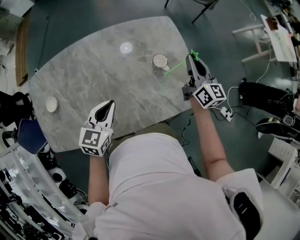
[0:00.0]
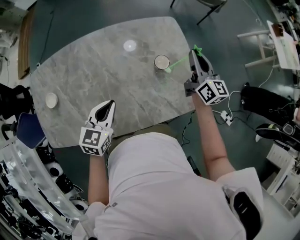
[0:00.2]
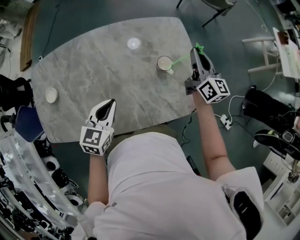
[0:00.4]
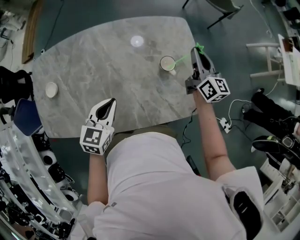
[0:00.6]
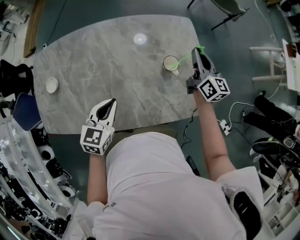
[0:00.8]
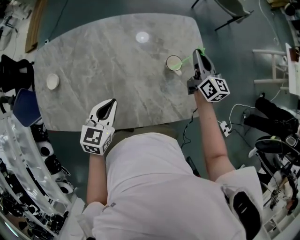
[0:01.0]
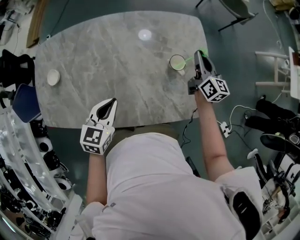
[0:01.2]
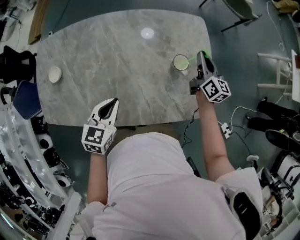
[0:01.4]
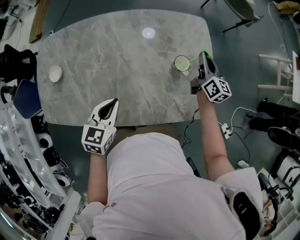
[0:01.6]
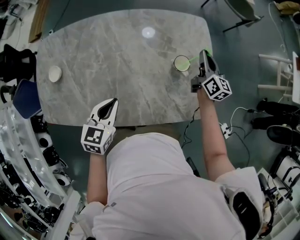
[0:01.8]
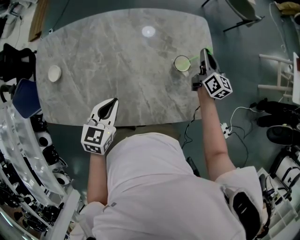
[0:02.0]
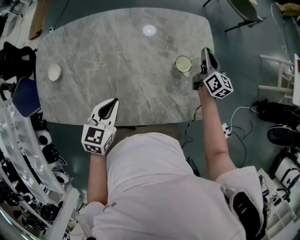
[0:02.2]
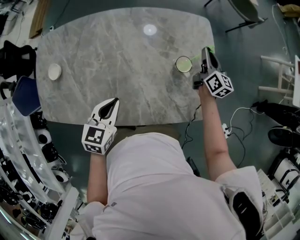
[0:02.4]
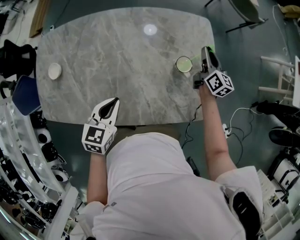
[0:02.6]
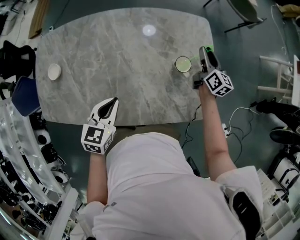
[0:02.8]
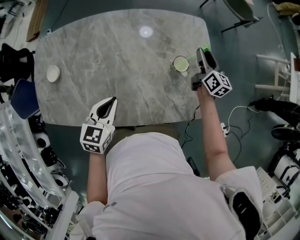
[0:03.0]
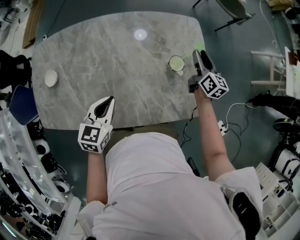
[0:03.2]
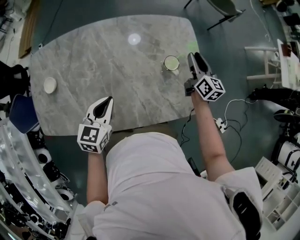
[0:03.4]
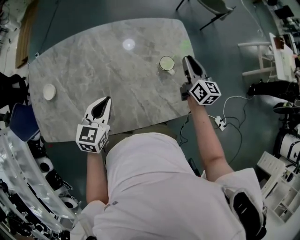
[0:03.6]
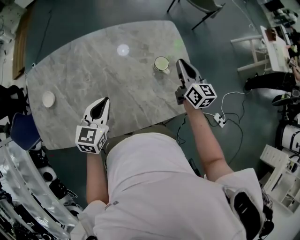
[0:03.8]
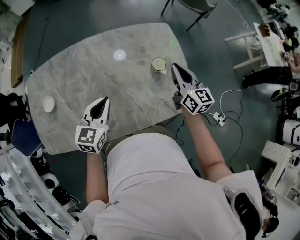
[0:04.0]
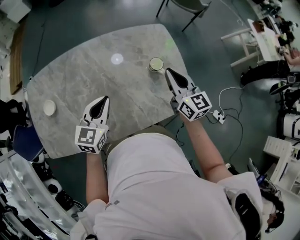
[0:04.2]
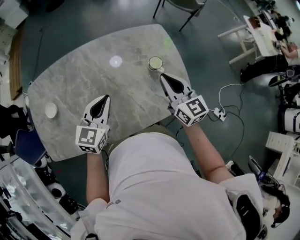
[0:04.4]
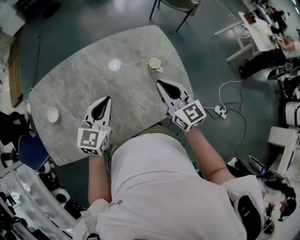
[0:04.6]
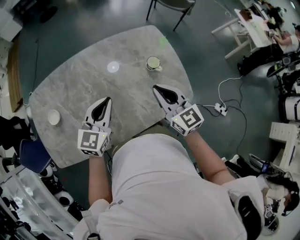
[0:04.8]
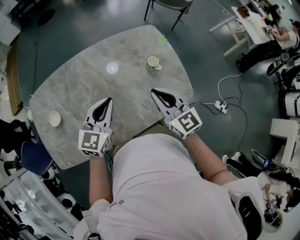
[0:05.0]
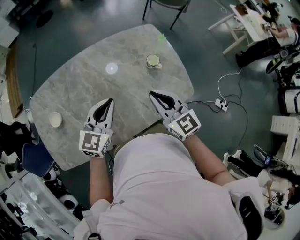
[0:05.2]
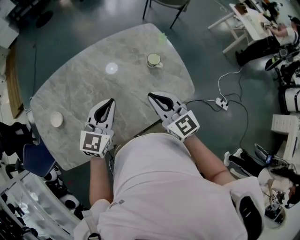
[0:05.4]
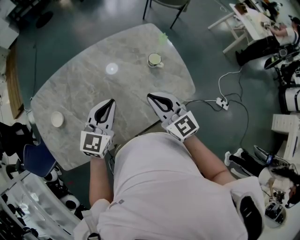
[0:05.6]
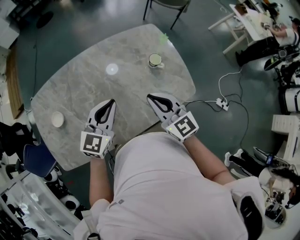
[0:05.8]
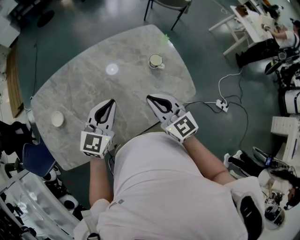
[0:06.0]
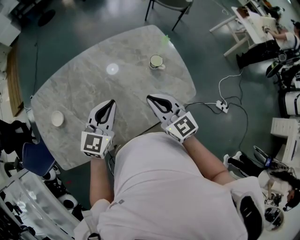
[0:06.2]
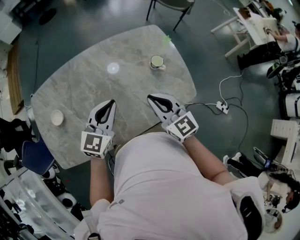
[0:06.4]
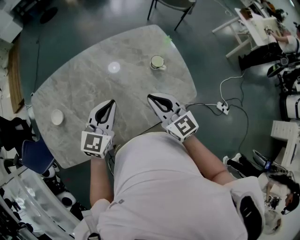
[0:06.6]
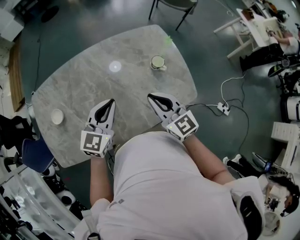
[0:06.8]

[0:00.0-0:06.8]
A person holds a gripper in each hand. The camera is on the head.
0:00.0 to 0:01.4: The left gripper moves approximately 5 cm. The right gripper heads downward and forward, covering approximately 15 cm.
0:01.4 to 0:02.8: The right gripper opens up.
0:02.8 to 0:04.0: The right gripper travels backward and upward by about 20 cm, and closes up. Meanwhile the left gripper shifts approximately 5 cm upward.
0:04.0 to 0:05.4: The left gripper heads upward, covering approximately 5 cm; the right gripper moves backward and to the left, about 20 cm.
0:05.4 to 0:06.8: There are only small adjustments of the grippers.

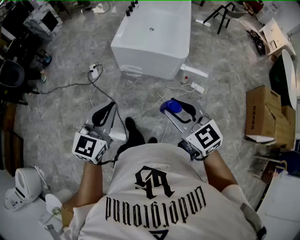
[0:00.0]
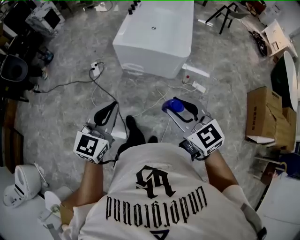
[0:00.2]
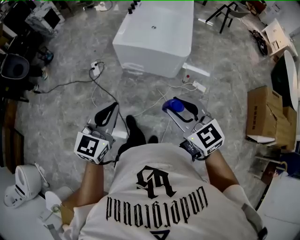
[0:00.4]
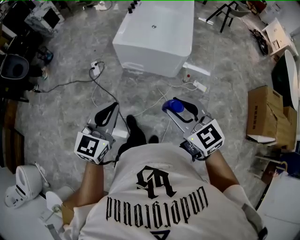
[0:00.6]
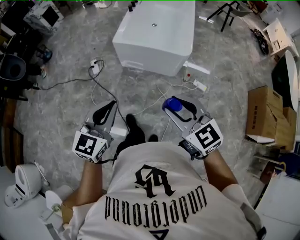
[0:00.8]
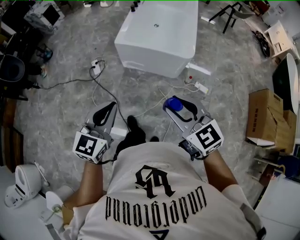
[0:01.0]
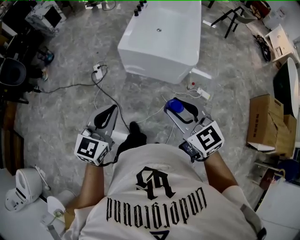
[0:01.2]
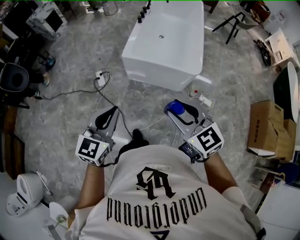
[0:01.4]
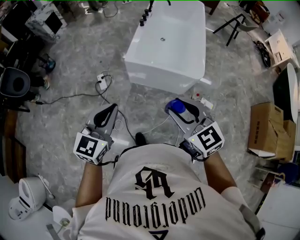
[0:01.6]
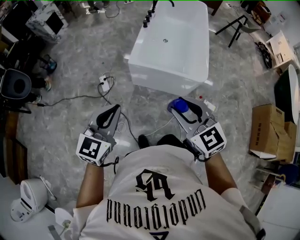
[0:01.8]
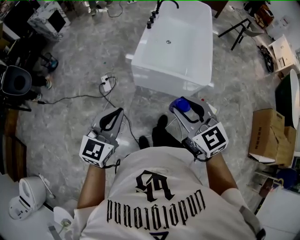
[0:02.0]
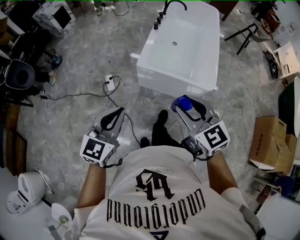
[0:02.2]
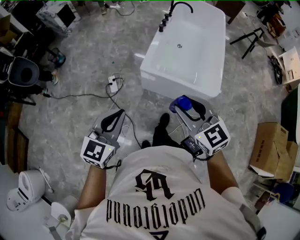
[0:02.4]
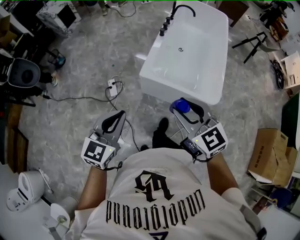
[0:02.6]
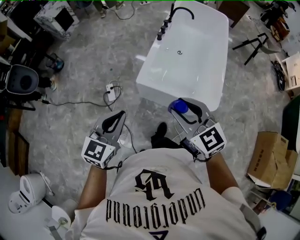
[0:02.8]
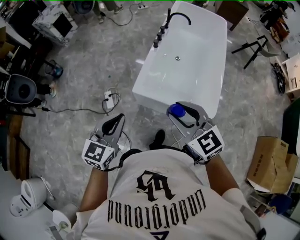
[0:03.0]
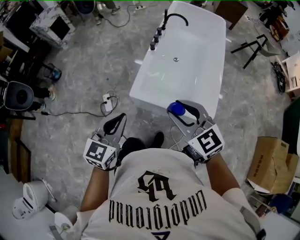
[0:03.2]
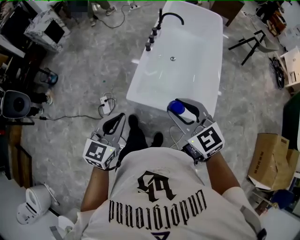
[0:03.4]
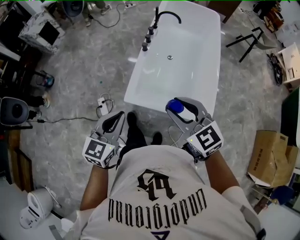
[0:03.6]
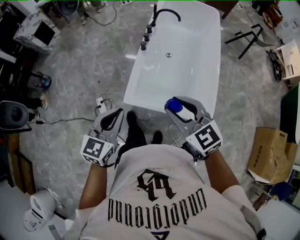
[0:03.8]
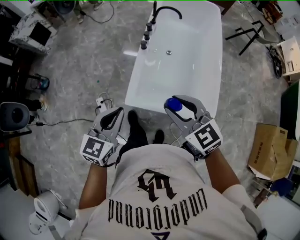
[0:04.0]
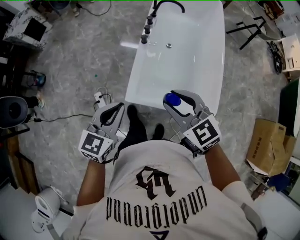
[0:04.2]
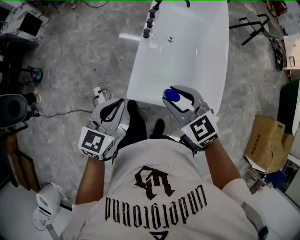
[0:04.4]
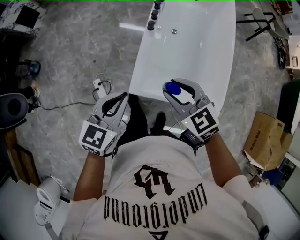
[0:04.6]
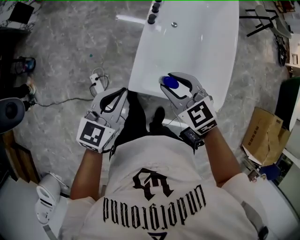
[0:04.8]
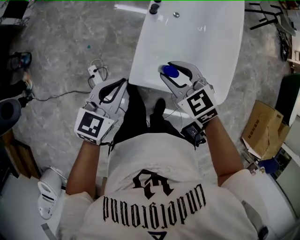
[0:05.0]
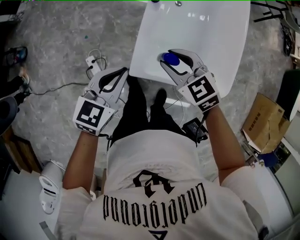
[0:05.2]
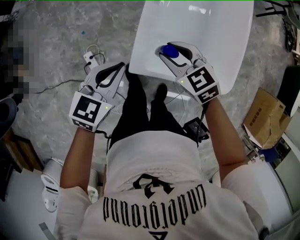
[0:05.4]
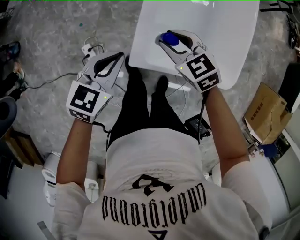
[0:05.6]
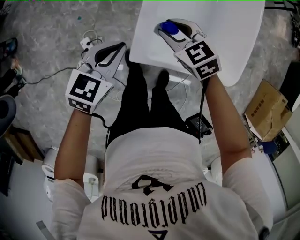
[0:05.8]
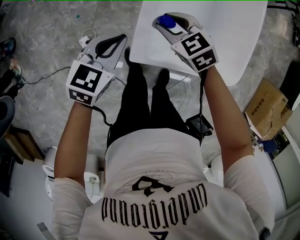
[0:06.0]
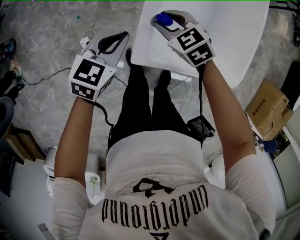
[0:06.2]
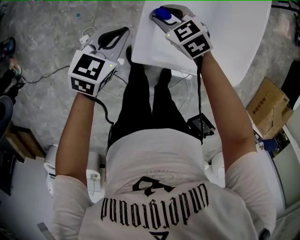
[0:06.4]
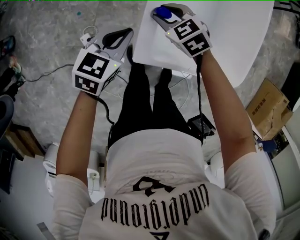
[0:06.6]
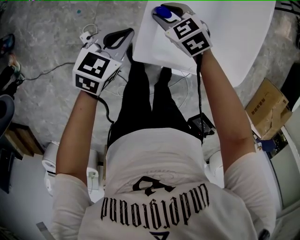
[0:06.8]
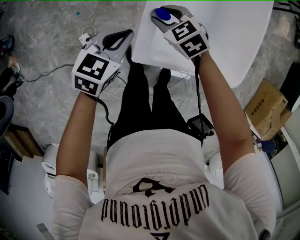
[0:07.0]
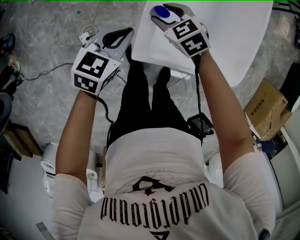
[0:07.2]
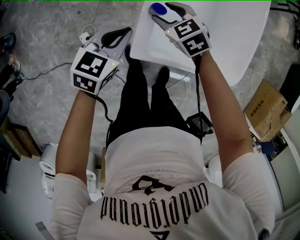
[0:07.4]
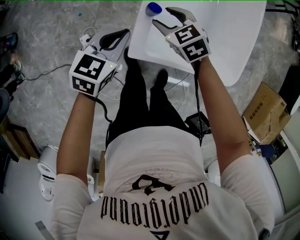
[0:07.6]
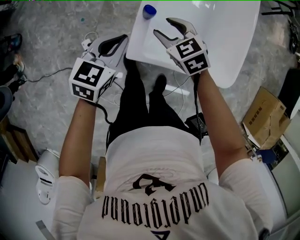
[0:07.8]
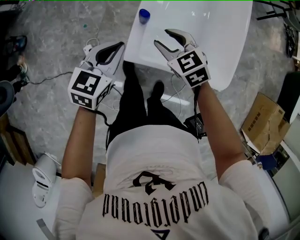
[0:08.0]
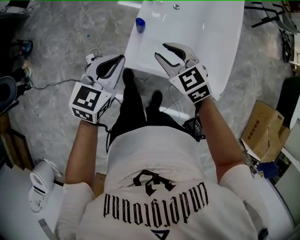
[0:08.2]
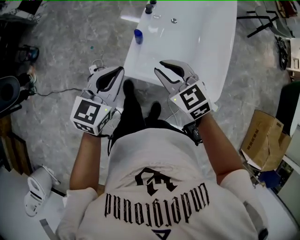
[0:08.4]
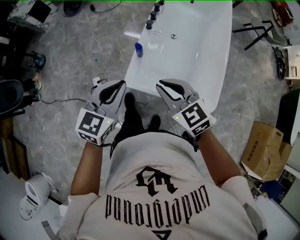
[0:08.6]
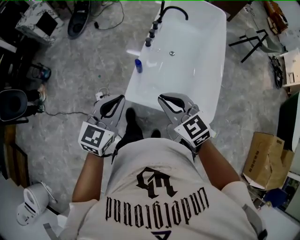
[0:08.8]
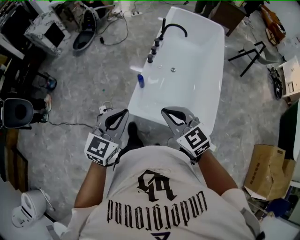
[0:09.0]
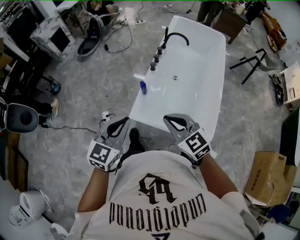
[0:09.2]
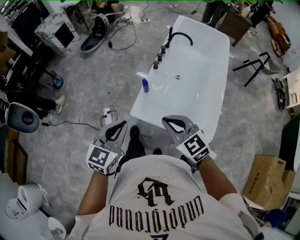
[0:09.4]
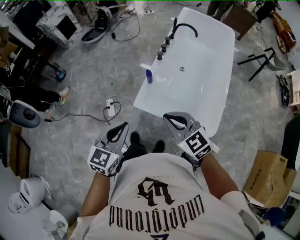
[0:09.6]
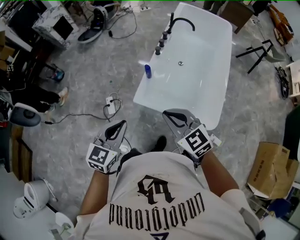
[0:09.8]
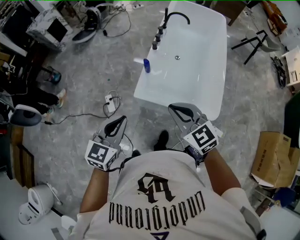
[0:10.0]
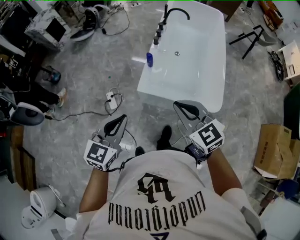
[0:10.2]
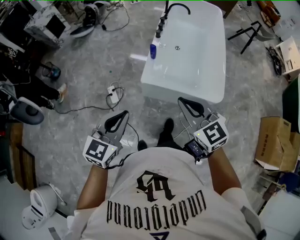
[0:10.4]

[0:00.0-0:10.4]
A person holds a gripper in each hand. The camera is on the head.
0:00.0 to 0:01.4: Both grippers move forward and to the left, about 15 cm.
0:01.4 to 0:03.0: Both grippers move forward, some 35 cm.
0:03.0 to 0:04.4: The right gripper is displaced forward and downward by some 25 cm. Meanwhile the left gripper travels forward by about 25 cm.
0:04.4 to 0:06.0: The grippers both shift downward and forward by some 30 cm.
0:06.0 to 0:07.4: The grippers stay close to where they were, moving slightly.
0:07.4 to 0:09.0: The two grippers go some 50 cm upward and backward. The right gripper turns by about 30 degrees, and closes up, while the left gripper rotates about 30 degrees.
0:09.0 to 0:10.4: Both grippers travel together backward and to the left, roughly 20 cm.

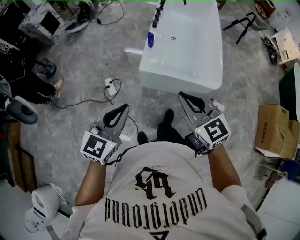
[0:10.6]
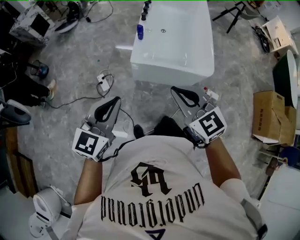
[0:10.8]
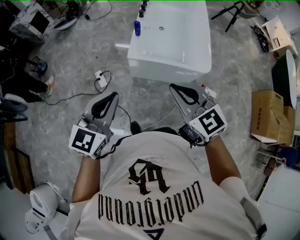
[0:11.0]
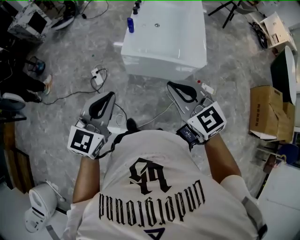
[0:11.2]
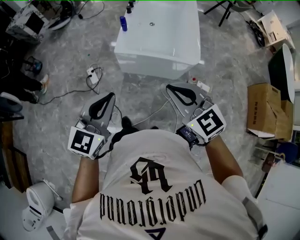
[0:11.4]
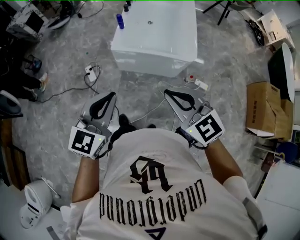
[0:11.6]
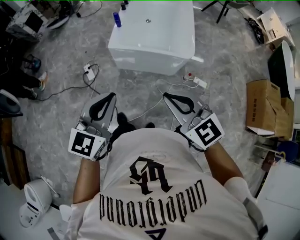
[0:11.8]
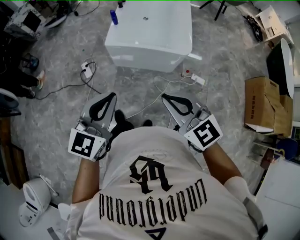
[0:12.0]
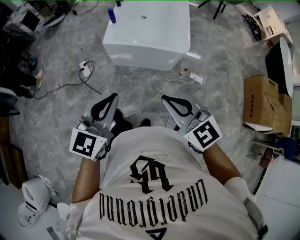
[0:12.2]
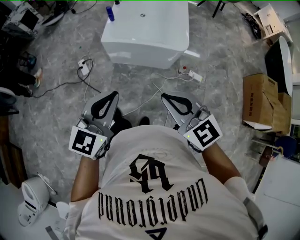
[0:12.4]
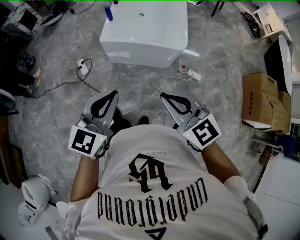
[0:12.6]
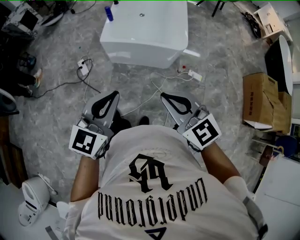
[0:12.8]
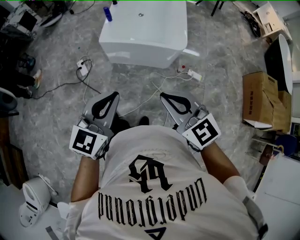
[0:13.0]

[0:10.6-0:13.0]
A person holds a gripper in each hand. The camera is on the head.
0:10.6 to 0:11.8: The grippers both shift backward and to the right by some 25 cm.
0:11.8 to 0:13.0: The left gripper ends up about 5 cm from where it was.

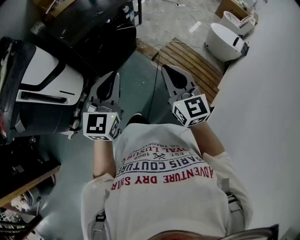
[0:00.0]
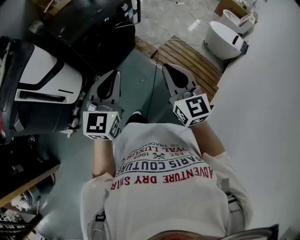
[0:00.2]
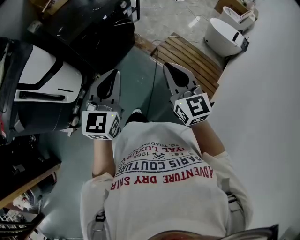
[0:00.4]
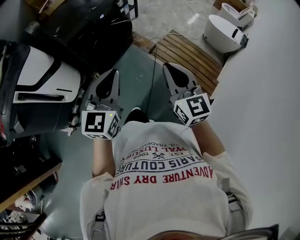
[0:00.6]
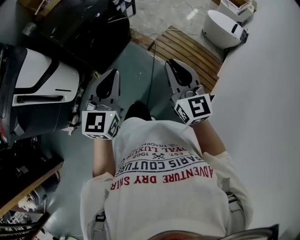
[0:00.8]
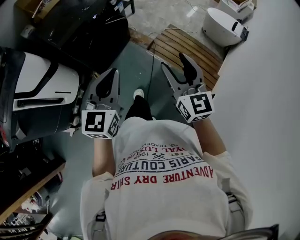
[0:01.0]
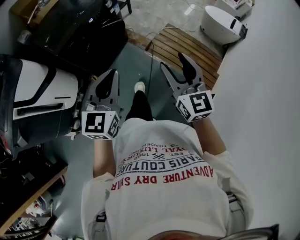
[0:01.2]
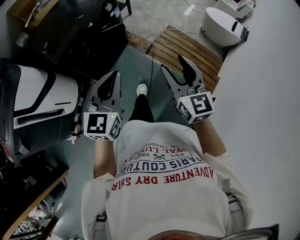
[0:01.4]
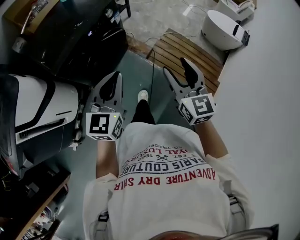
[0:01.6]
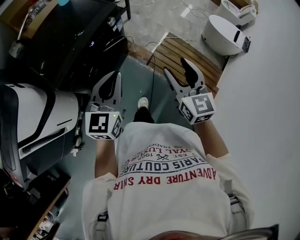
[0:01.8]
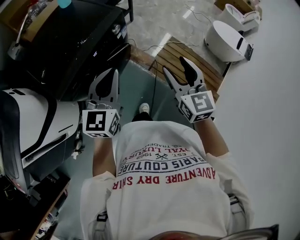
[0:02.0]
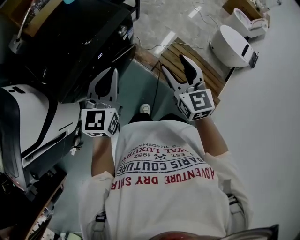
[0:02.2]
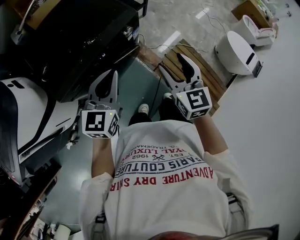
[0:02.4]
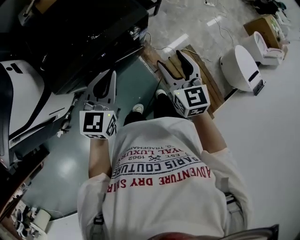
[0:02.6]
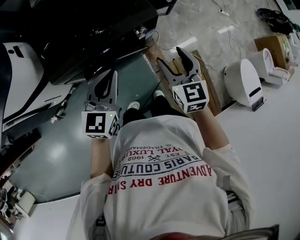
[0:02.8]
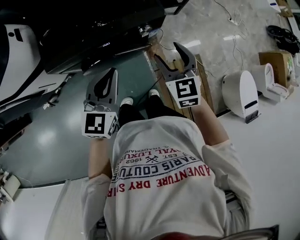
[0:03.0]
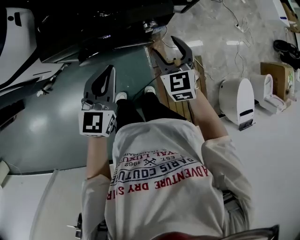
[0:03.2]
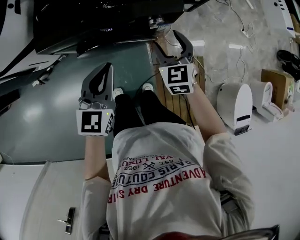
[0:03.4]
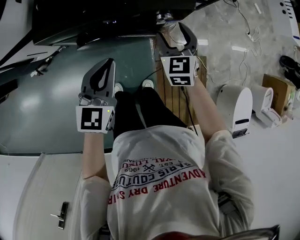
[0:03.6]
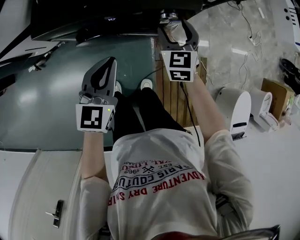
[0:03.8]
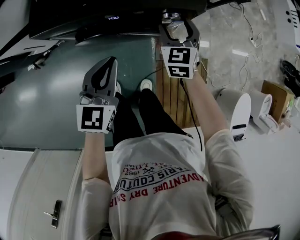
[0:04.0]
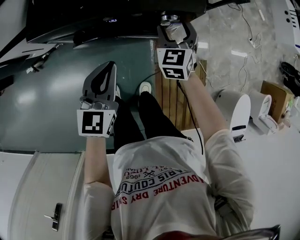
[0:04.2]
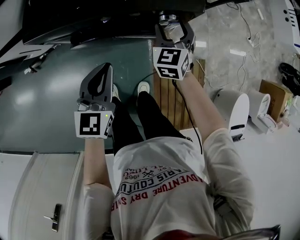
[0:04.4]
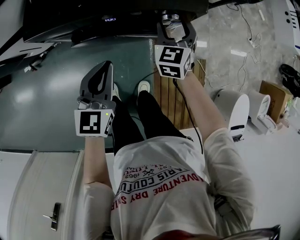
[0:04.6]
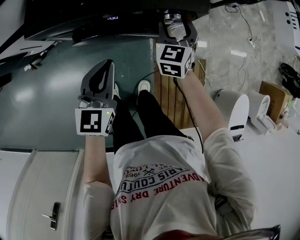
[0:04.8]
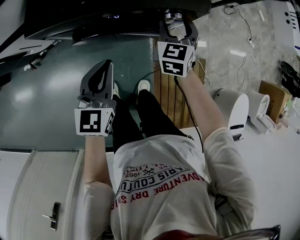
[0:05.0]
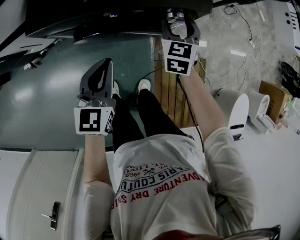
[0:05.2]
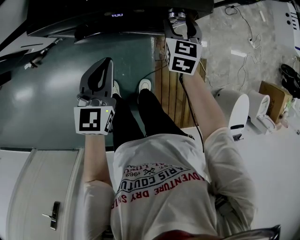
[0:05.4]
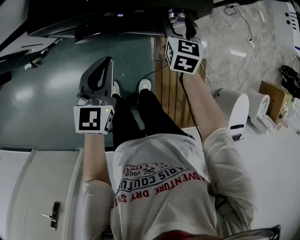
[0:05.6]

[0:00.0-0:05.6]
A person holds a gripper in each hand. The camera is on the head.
0:00.0 to 0:01.4: The right gripper travels forward and to the right by some 10 cm, and opens up. The left gripper moves forward, approximately 10 cm.
0:01.4 to 0:02.8: The left gripper changes place by some 40 cm, and rotates roughly 30 degrees; the right gripper ends up approximately 50 cm from where it was, and turns by roughly 30 degrees.
0:02.8 to 0:04.2: The left gripper moves downward, some 15 cm, and changes its angle by some 20 degrees. The right gripper moves downward and forward, approximately 25 cm, and turns by some 20 degrees.
0:04.2 to 0:05.6: The grippers make only small movements.
